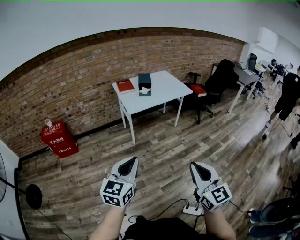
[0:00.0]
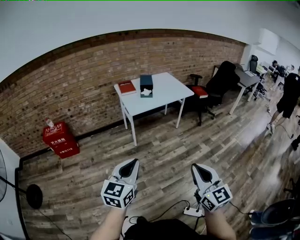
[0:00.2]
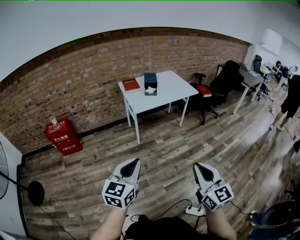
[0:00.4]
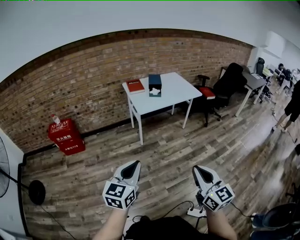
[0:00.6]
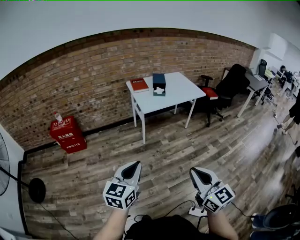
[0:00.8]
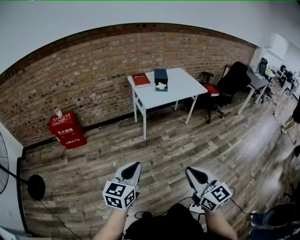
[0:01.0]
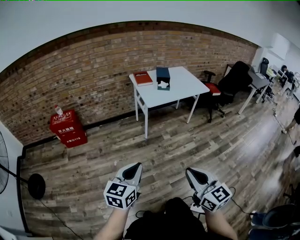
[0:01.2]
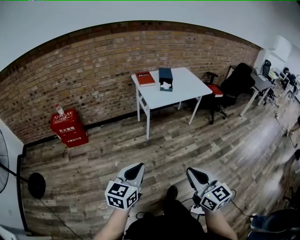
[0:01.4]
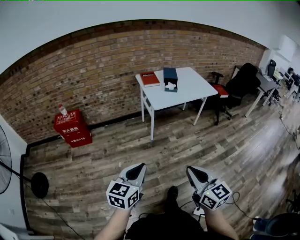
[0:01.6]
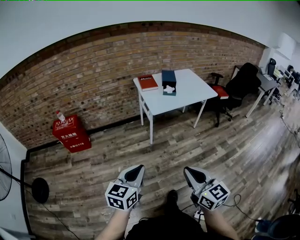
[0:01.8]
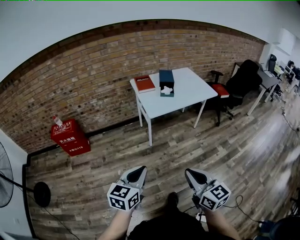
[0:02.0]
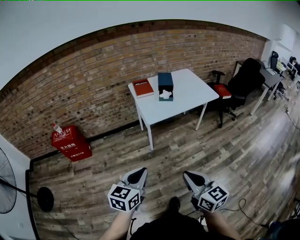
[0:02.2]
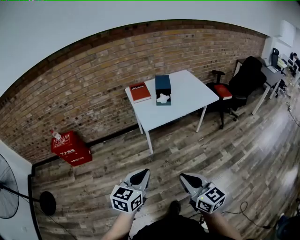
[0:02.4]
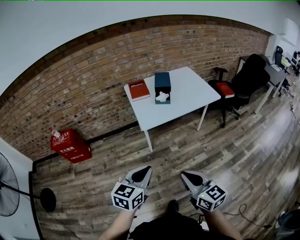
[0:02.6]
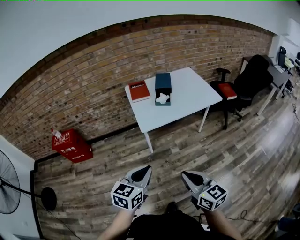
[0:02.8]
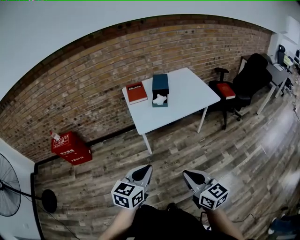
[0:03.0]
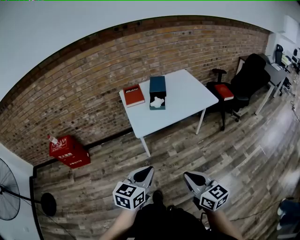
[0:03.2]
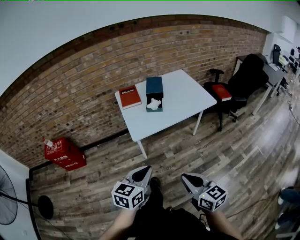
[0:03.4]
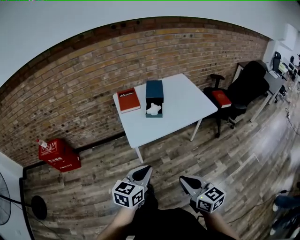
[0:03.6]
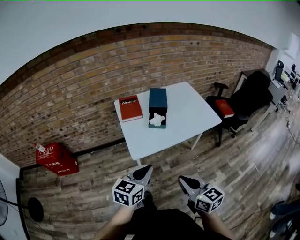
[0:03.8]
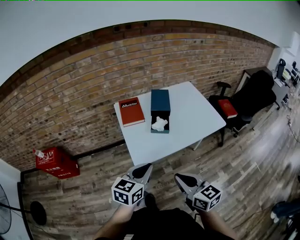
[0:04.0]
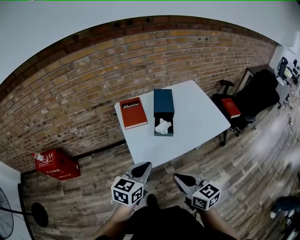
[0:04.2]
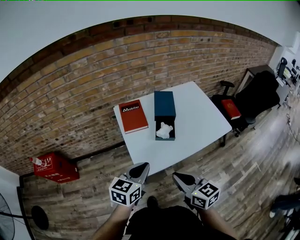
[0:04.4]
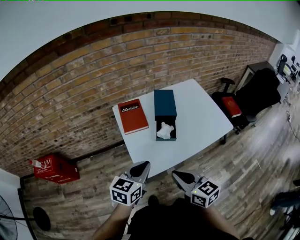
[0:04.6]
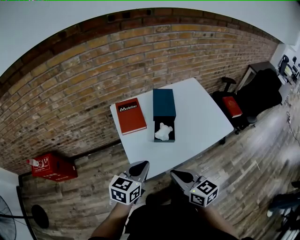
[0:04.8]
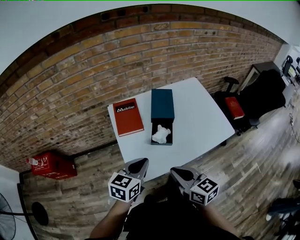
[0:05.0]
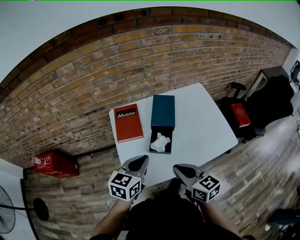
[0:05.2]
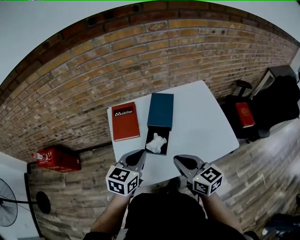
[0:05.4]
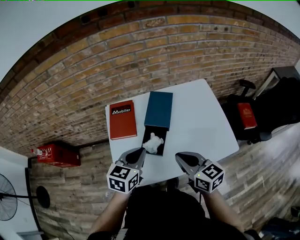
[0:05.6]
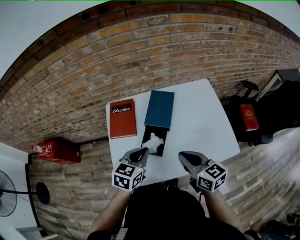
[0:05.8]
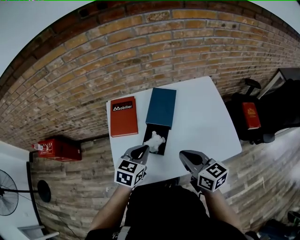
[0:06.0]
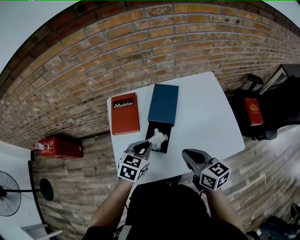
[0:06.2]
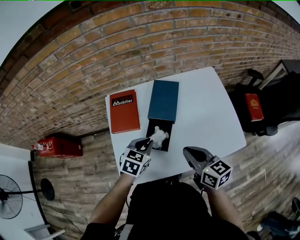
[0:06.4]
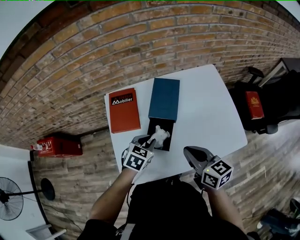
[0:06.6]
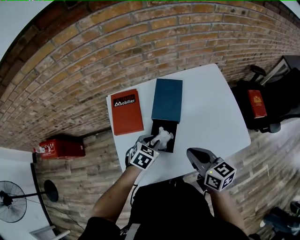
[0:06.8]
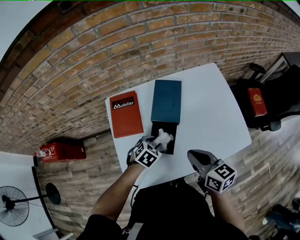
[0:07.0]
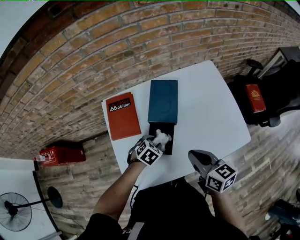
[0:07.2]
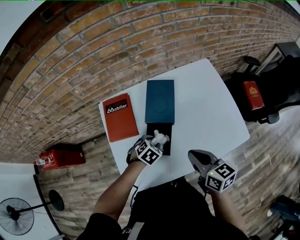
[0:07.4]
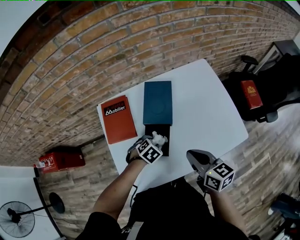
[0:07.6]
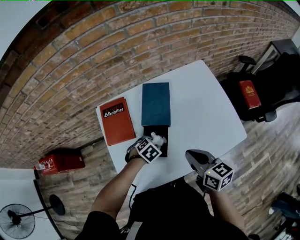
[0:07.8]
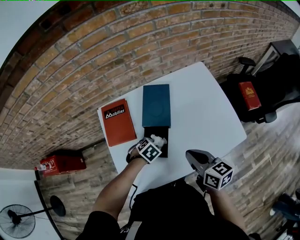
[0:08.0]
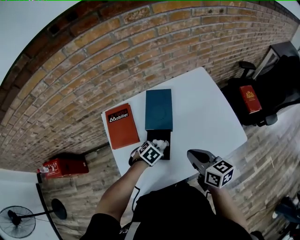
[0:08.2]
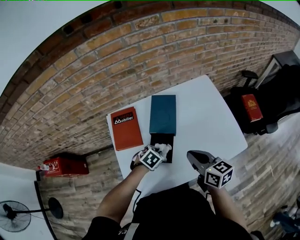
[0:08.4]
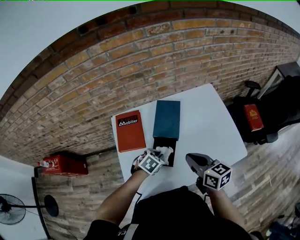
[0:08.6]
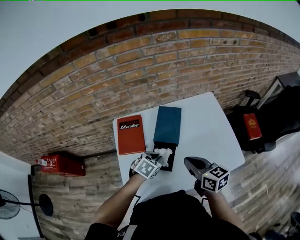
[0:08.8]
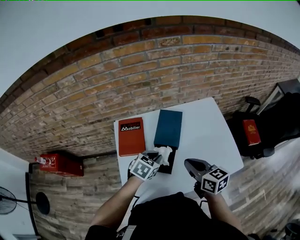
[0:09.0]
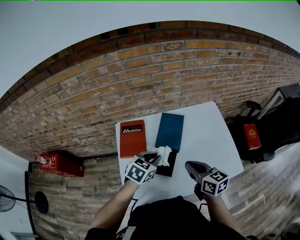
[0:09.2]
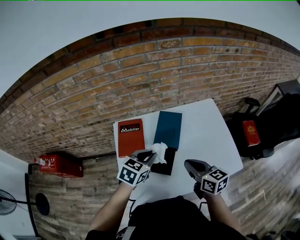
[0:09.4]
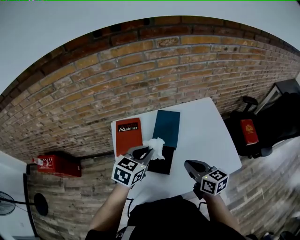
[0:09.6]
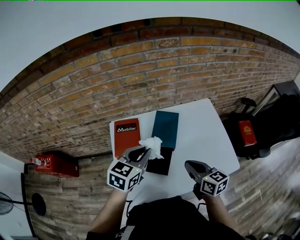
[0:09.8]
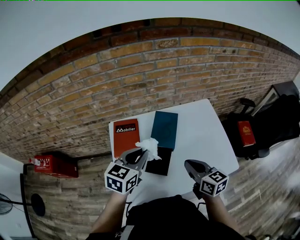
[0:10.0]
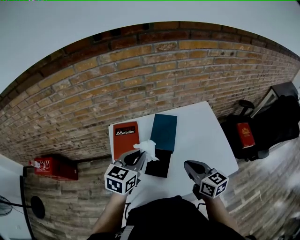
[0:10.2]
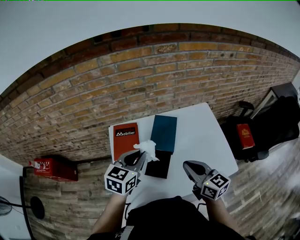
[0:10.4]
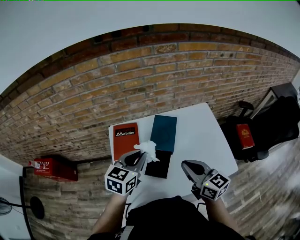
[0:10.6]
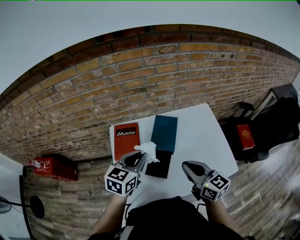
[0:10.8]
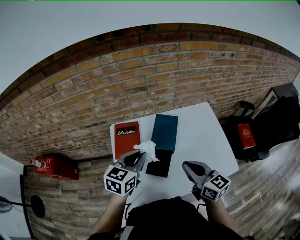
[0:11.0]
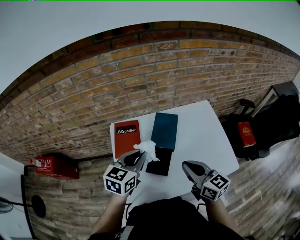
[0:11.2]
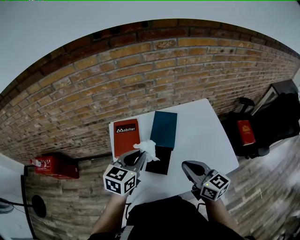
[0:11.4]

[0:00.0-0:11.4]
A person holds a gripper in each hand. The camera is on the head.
0:00.0 to 0:01.4: Both grippers move to the left and downward, approximately 15 cm.
0:01.4 to 0:02.8: The two grippers go about 30 cm forward and to the right.
0:02.8 to 0:04.2: Both grippers move forward, some 35 cm.
0:04.2 to 0:05.6: Both grippers move forward and to the right, roughly 30 cm.
0:05.6 to 0:07.2: The left gripper moves downward, roughly 20 cm, angles its fingers downward, by roughly 40 degrees, and opens, while the right gripper goes approximately 5 cm downward.
0:07.2 to 0:08.6: The left gripper moves about 5 cm, and closes.
0:08.6 to 0:10.0: The left gripper heads upward, covering about 20 cm, and tilts its fingers some 40 degrees upward.
0:10.0 to 0:11.4: The right gripper changes place by some 5 cm.

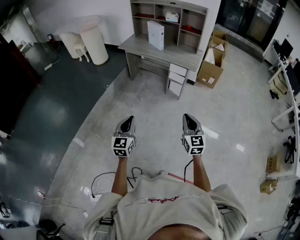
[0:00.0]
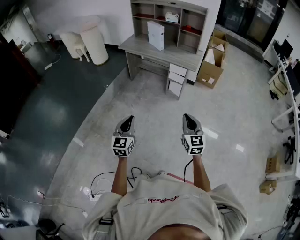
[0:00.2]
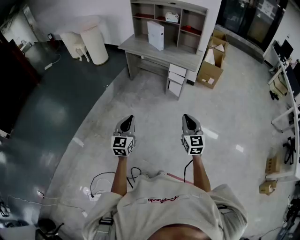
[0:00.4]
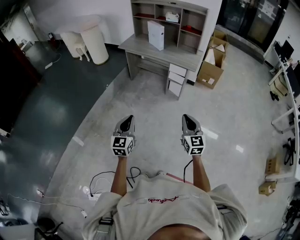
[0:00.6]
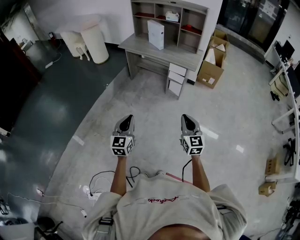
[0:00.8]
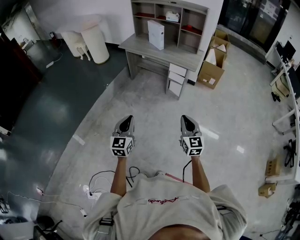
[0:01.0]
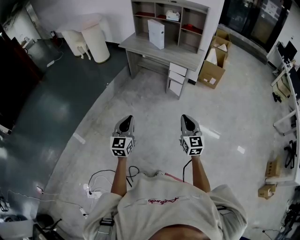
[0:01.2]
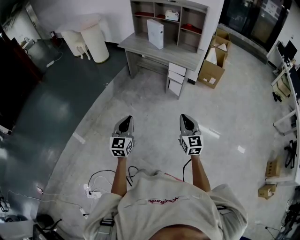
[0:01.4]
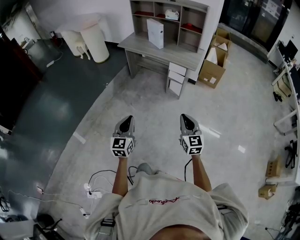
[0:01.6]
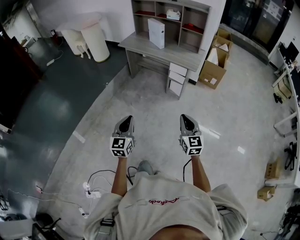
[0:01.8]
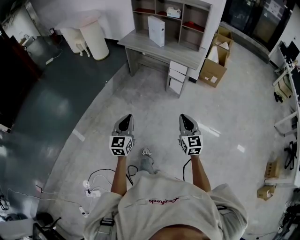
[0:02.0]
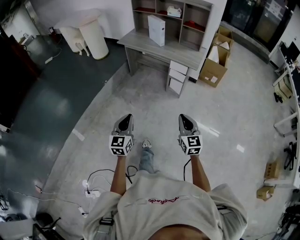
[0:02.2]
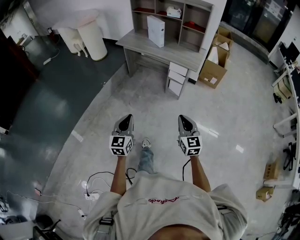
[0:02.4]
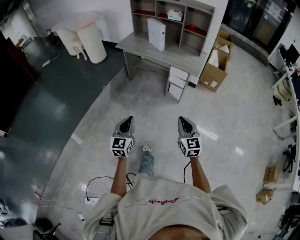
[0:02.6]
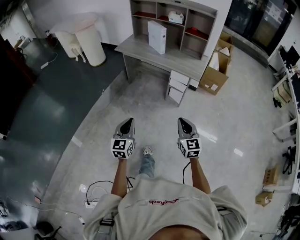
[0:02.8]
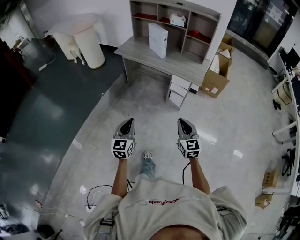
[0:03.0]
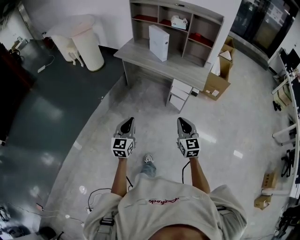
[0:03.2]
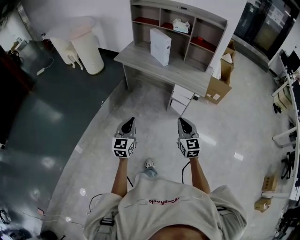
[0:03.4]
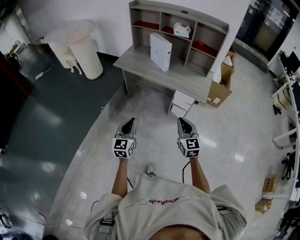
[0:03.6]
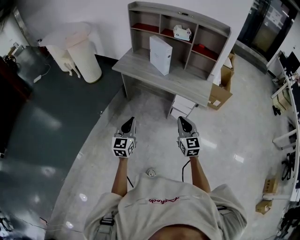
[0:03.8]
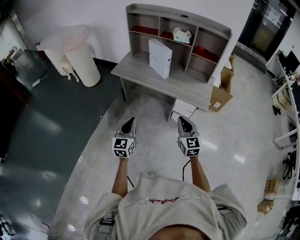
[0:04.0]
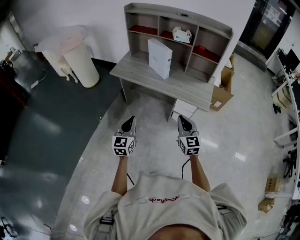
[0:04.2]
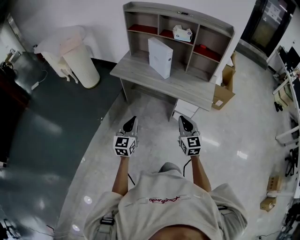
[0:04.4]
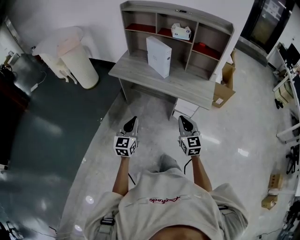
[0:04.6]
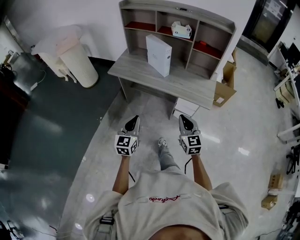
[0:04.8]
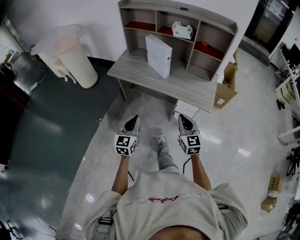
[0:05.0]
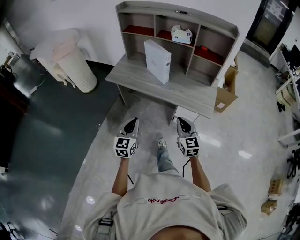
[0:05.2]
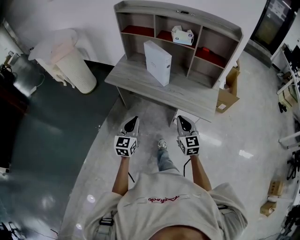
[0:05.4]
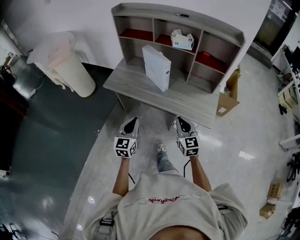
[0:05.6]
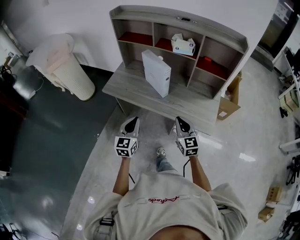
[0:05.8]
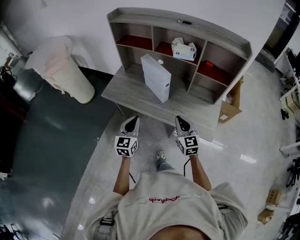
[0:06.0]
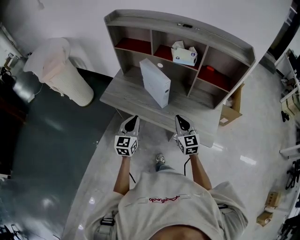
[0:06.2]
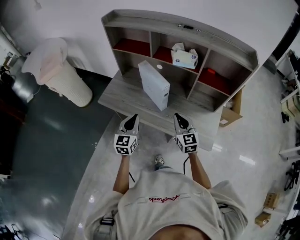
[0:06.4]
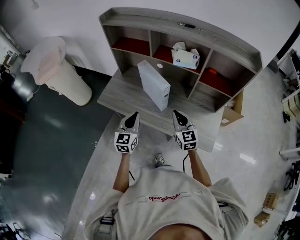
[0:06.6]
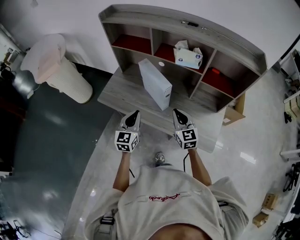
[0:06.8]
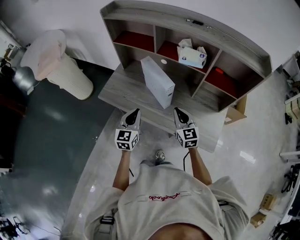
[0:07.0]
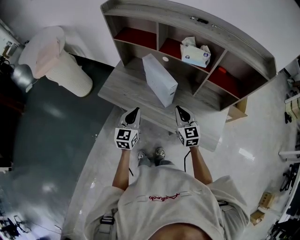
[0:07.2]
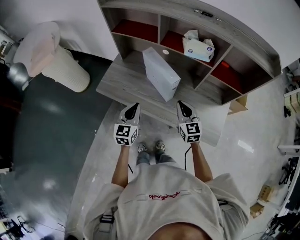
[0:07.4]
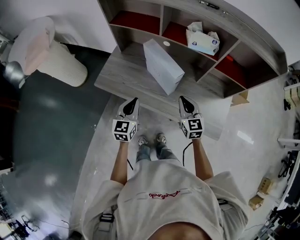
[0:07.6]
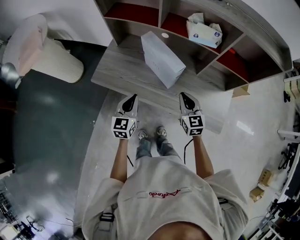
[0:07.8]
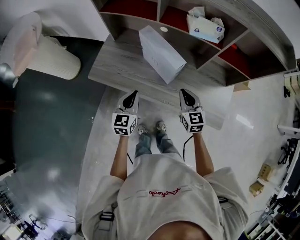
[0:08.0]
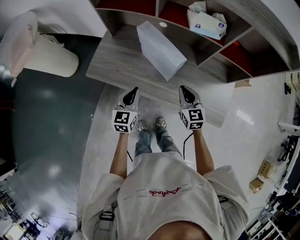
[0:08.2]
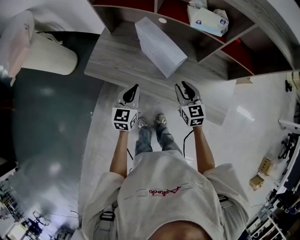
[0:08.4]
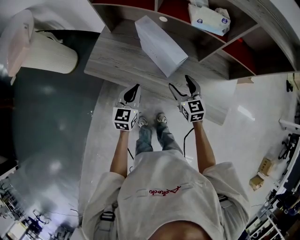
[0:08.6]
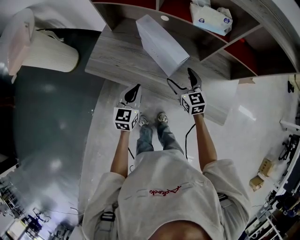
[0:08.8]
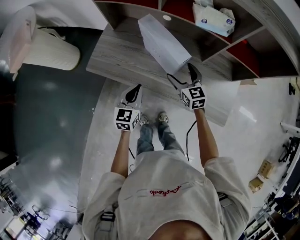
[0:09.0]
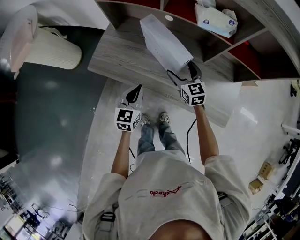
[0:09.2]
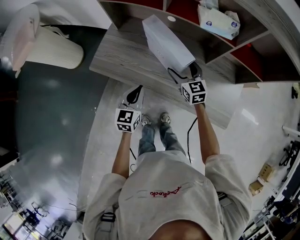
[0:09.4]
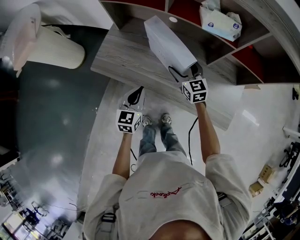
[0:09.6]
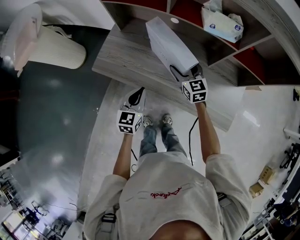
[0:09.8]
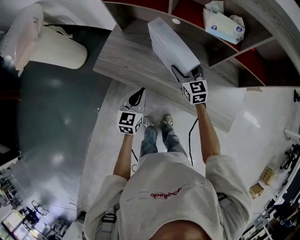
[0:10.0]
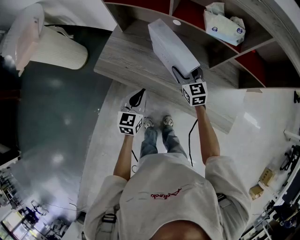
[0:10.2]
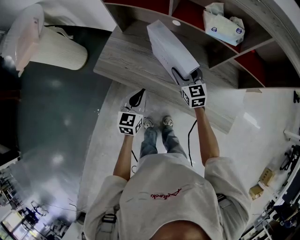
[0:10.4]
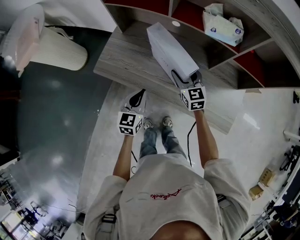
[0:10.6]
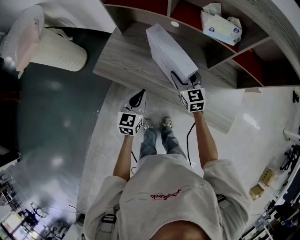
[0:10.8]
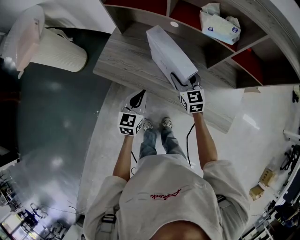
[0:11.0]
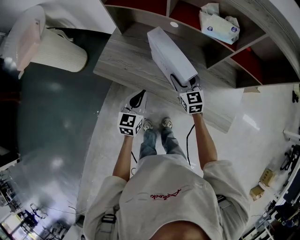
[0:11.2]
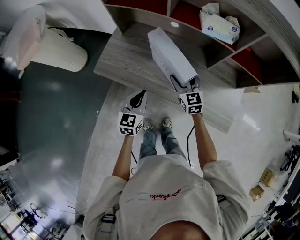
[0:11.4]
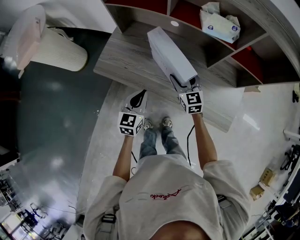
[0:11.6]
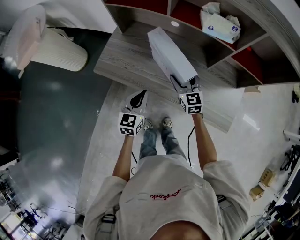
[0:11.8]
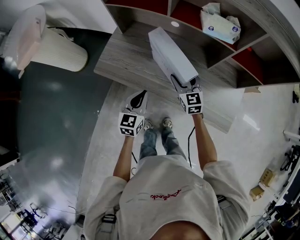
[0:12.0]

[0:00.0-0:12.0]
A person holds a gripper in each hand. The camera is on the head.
0:00.0 to 0:01.6: The grippers stay close to where they were, moving slightly.
0:01.6 to 0:03.0: The grippers both shift forward by about 20 cm.
0:03.0 to 0:04.4: The grippers both shift forward by about 30 cm.
0:04.4 to 0:06.0: Both grippers move forward, approximately 30 cm.
0:06.0 to 0:07.6: Both grippers move forward, some 15 cm.
0:07.6 to 0:09.0: The left gripper goes approximately 5 cm downward; the right gripper moves forward and downward, roughly 10 cm, and opens its fingers.
0:09.0 to 0:10.4: The right gripper shifts by approximately 5 cm, and closes.
0:10.4 to 0:12.0: The grippers make only small movements.

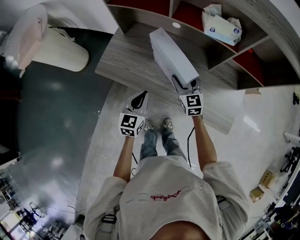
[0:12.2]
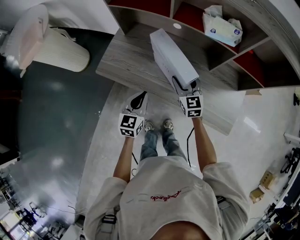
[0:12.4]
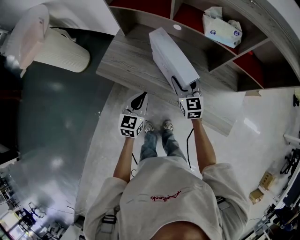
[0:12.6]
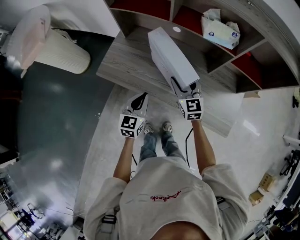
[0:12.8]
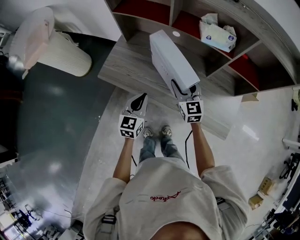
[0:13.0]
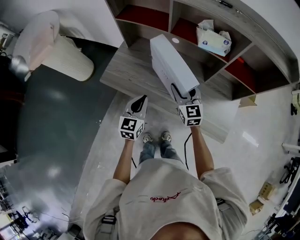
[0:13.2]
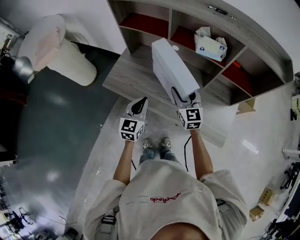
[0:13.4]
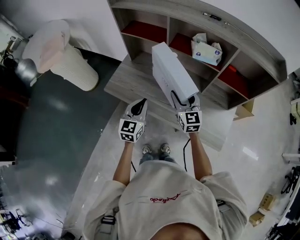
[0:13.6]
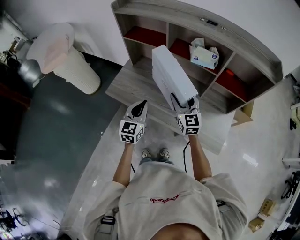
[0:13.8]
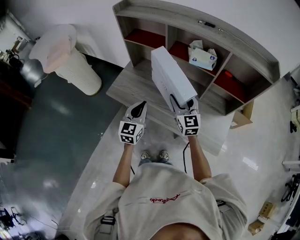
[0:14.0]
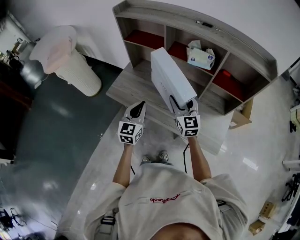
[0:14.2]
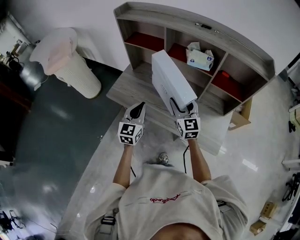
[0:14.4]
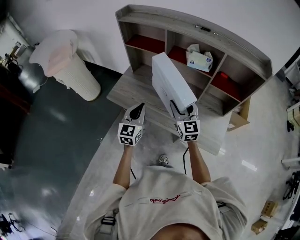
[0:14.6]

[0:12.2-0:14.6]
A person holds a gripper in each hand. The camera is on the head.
0:12.2 to 0:13.4: Both grippers move upward, about 10 cm.
0:13.4 to 0:14.6: The right gripper travels backward and upward by some 10 cm, while the left gripper shifts roughly 5 cm upward.
